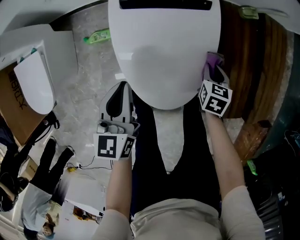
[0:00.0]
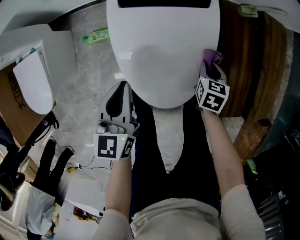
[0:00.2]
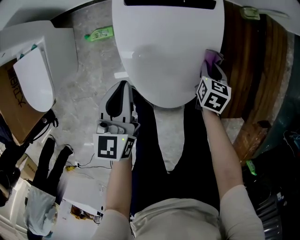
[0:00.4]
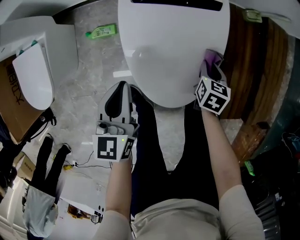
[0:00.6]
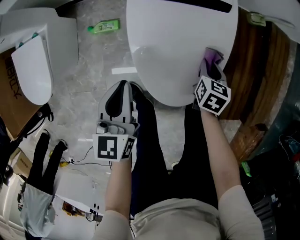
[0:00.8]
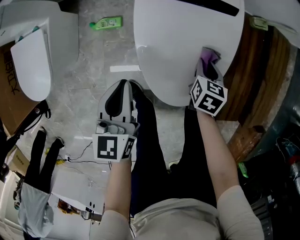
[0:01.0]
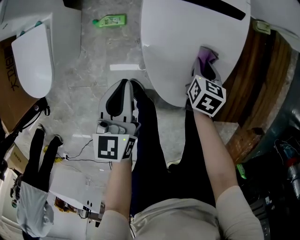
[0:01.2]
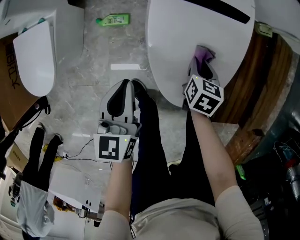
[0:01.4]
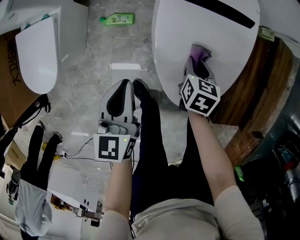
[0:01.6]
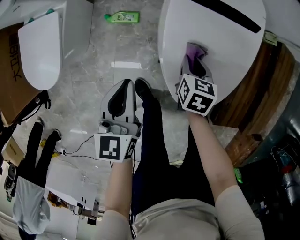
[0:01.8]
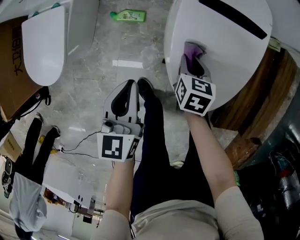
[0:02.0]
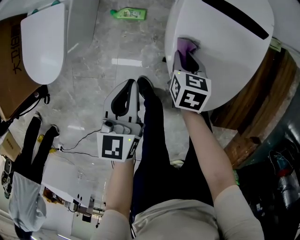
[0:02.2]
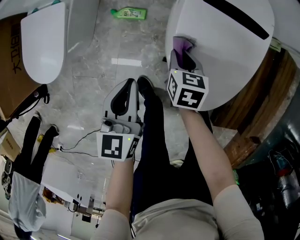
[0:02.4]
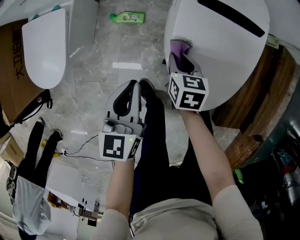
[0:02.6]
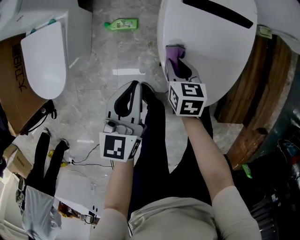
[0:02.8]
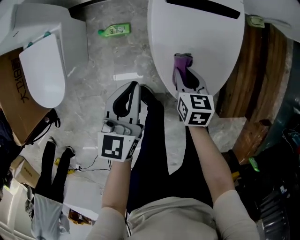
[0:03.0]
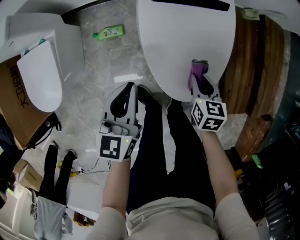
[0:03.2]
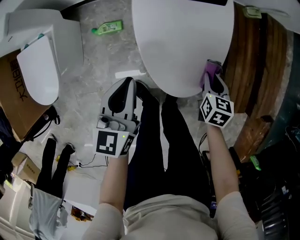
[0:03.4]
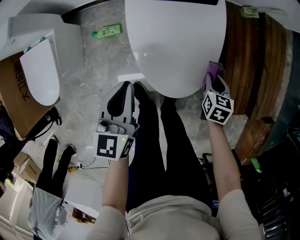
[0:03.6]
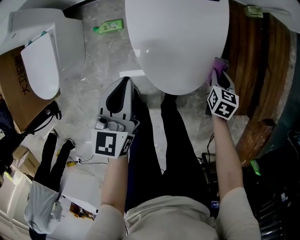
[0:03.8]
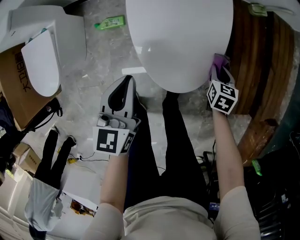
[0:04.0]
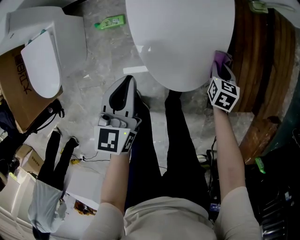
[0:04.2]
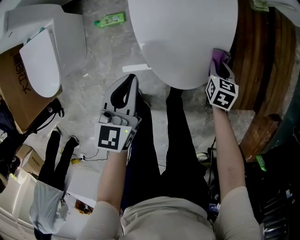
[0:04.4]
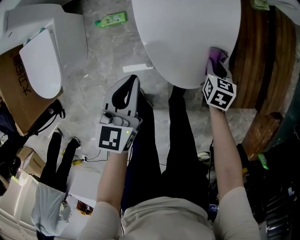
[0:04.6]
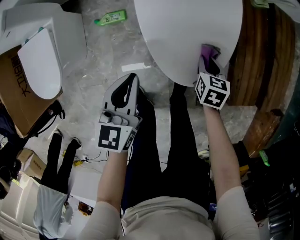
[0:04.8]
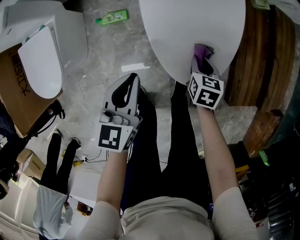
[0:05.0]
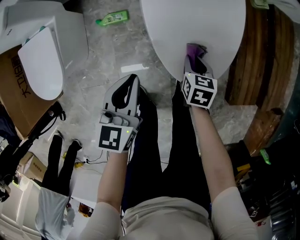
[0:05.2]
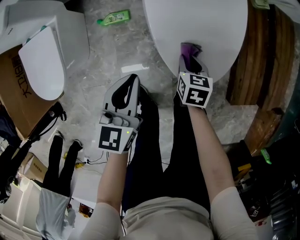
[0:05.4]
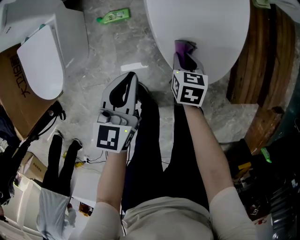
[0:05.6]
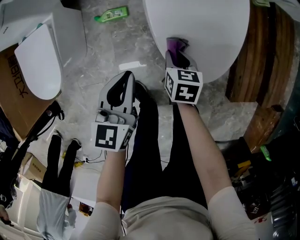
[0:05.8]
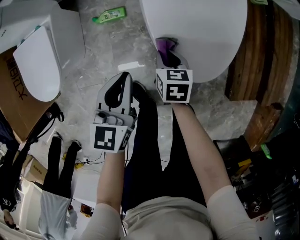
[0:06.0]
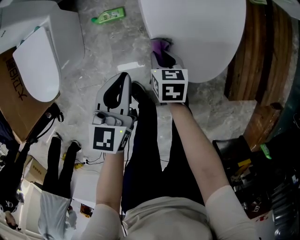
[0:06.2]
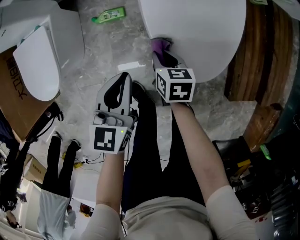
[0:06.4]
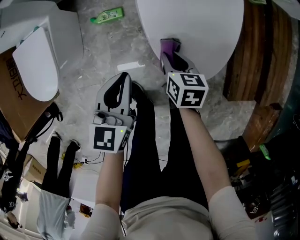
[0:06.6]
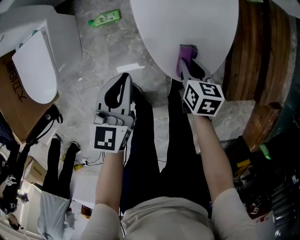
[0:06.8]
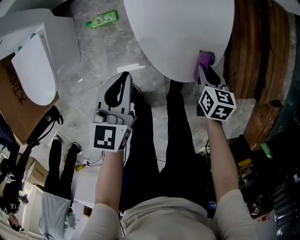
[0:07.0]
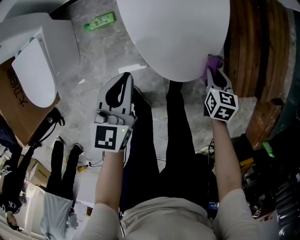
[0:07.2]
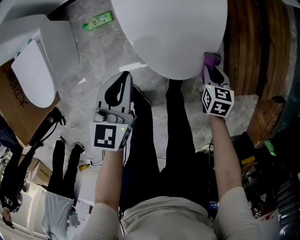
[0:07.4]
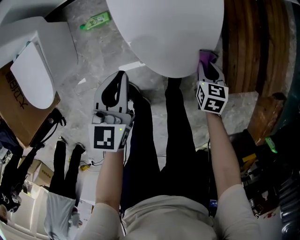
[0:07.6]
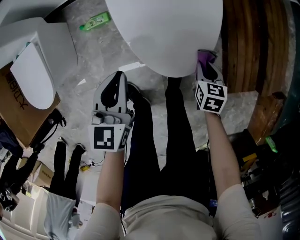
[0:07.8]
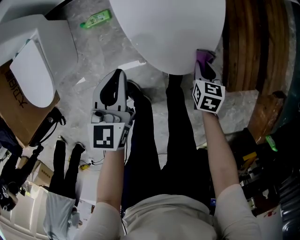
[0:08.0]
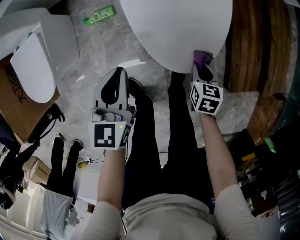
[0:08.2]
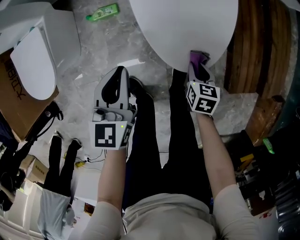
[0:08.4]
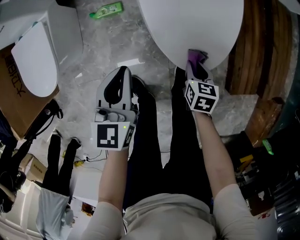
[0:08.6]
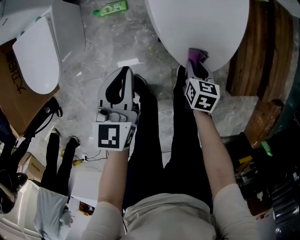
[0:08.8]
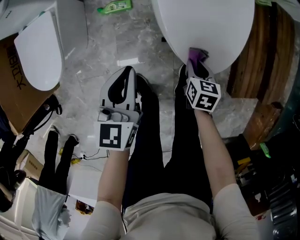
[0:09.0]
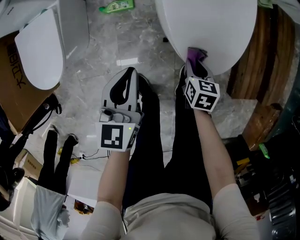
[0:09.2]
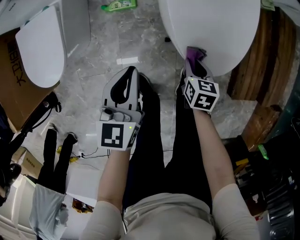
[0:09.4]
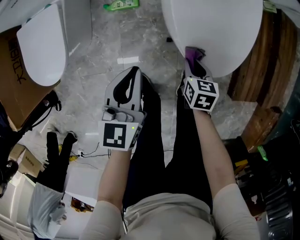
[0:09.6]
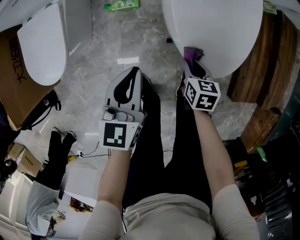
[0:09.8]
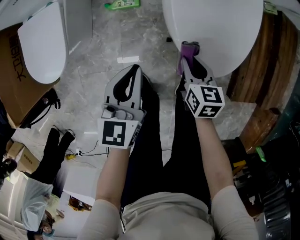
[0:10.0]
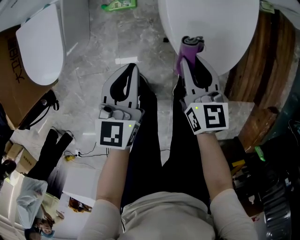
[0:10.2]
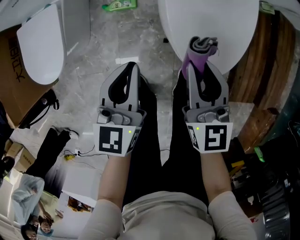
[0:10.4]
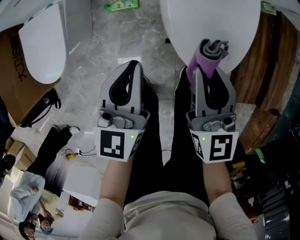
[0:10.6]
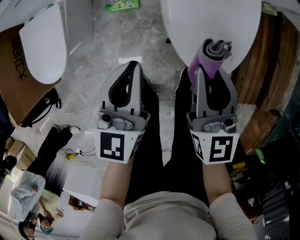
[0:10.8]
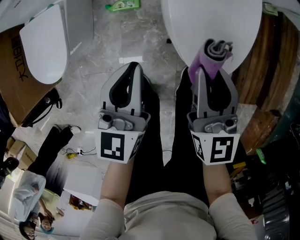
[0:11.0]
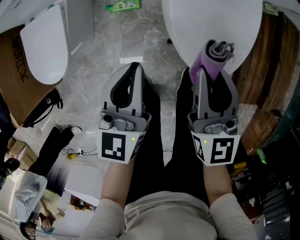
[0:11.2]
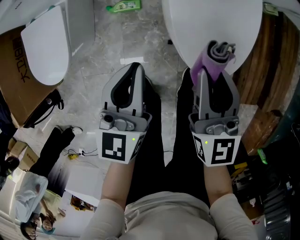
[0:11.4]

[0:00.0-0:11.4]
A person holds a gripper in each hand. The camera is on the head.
0:00.0 to 0:01.4: The right gripper moves to the left, about 15 cm. The left gripper heads to the left, covering approximately 10 cm.
0:01.4 to 0:02.8: The right gripper goes about 15 cm to the left.
0:02.8 to 0:04.2: The left gripper goes approximately 10 cm to the right. The right gripper shifts some 30 cm to the right, and changes its angle by some 20 degrees.
0:04.2 to 0:05.6: The right gripper goes some 25 cm to the left. Meanwhile the left gripper goes some 5 cm to the left.
0:05.6 to 0:07.2: The right gripper heads to the right, covering roughly 20 cm; the left gripper is displaced to the right by some 5 cm.
0:07.2 to 0:08.6: The right gripper heads to the left, covering some 10 cm, while the left gripper travels to the left by approximately 5 cm.
0:08.6 to 0:10.0: The right gripper travels to the left and upward by some 10 cm.
0:10.0 to 0:11.4: The right gripper travels upward by approximately 20 cm, and turns by roughly 30 degrees, while the left gripper goes roughly 5 cm upward.

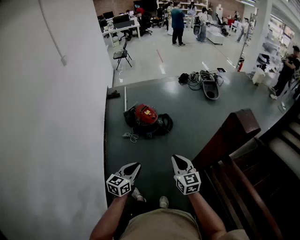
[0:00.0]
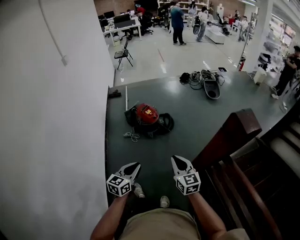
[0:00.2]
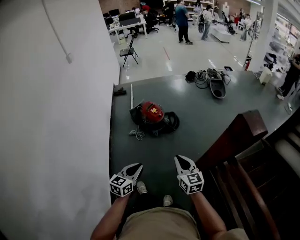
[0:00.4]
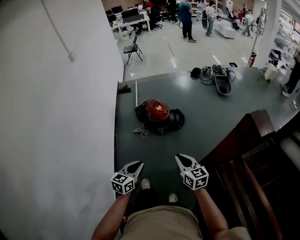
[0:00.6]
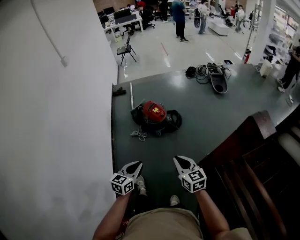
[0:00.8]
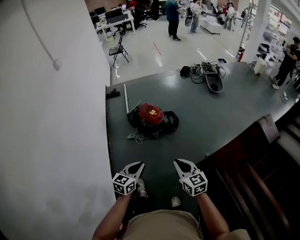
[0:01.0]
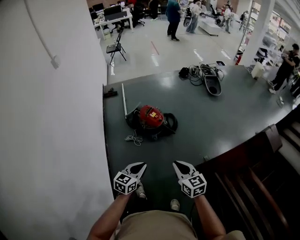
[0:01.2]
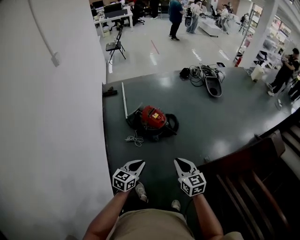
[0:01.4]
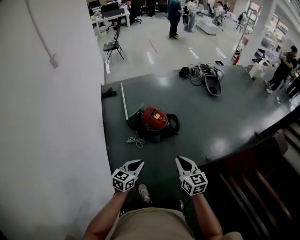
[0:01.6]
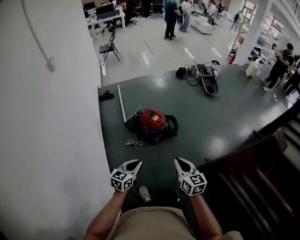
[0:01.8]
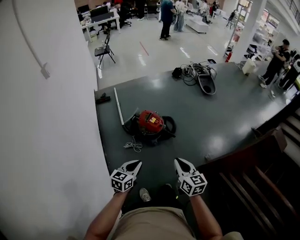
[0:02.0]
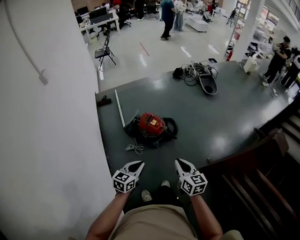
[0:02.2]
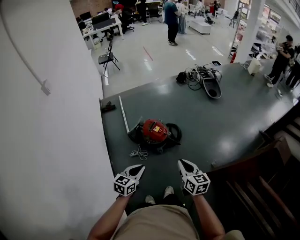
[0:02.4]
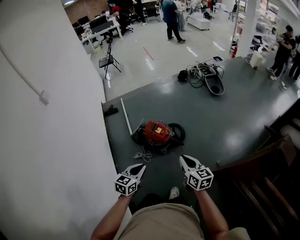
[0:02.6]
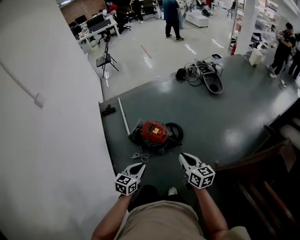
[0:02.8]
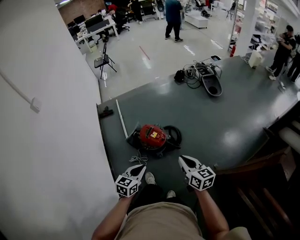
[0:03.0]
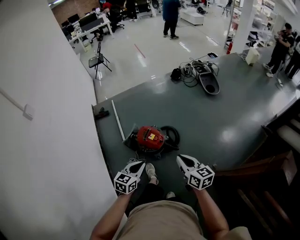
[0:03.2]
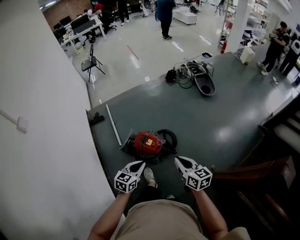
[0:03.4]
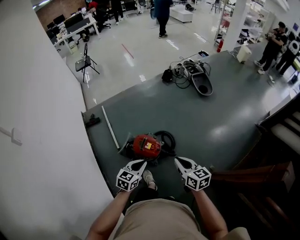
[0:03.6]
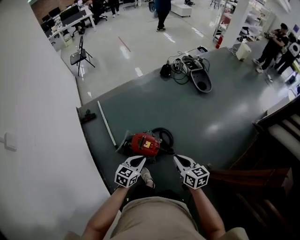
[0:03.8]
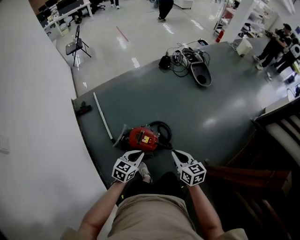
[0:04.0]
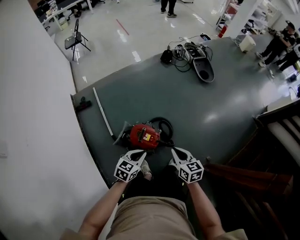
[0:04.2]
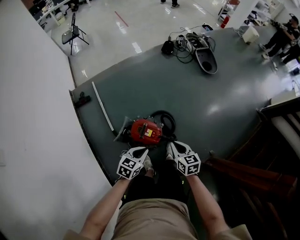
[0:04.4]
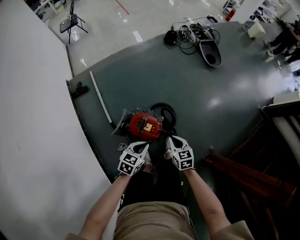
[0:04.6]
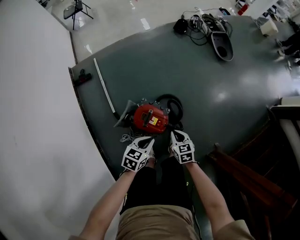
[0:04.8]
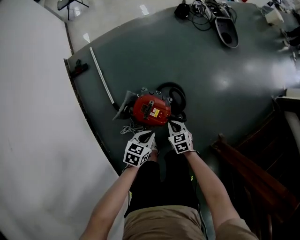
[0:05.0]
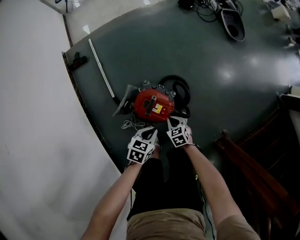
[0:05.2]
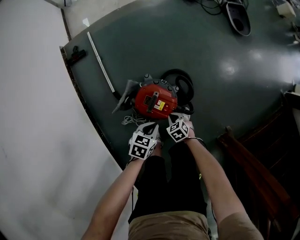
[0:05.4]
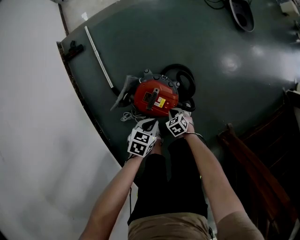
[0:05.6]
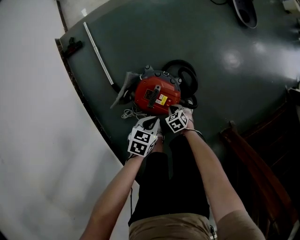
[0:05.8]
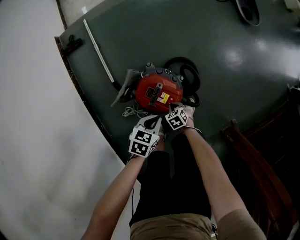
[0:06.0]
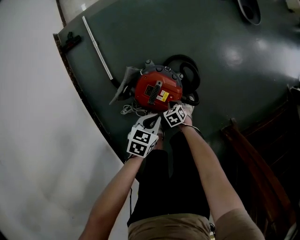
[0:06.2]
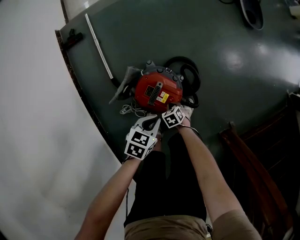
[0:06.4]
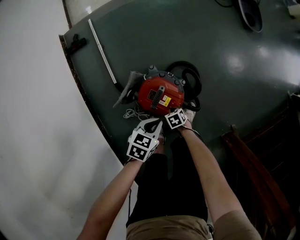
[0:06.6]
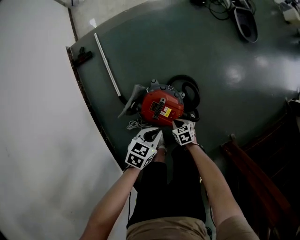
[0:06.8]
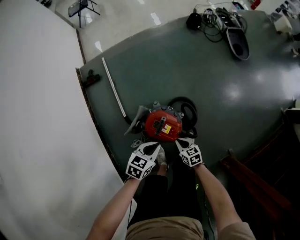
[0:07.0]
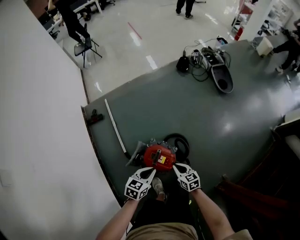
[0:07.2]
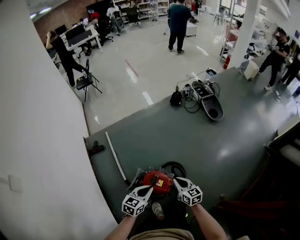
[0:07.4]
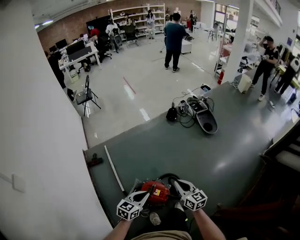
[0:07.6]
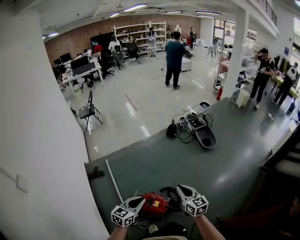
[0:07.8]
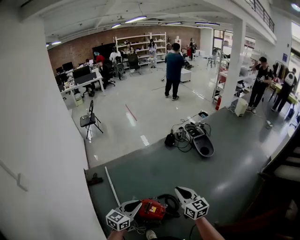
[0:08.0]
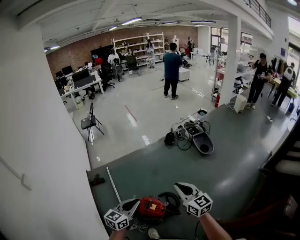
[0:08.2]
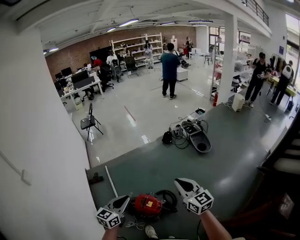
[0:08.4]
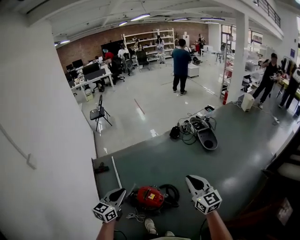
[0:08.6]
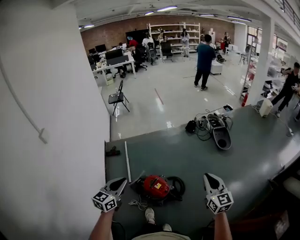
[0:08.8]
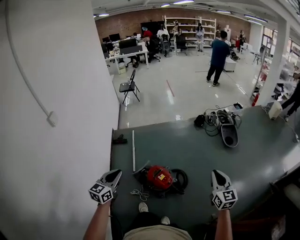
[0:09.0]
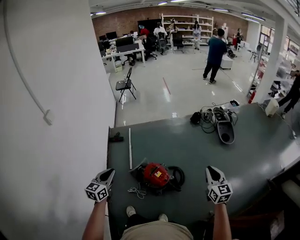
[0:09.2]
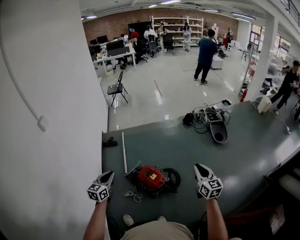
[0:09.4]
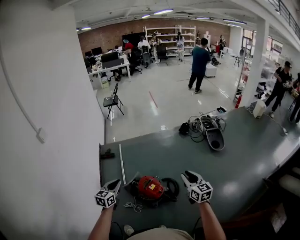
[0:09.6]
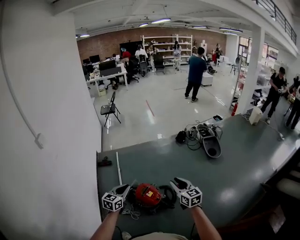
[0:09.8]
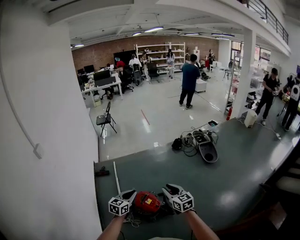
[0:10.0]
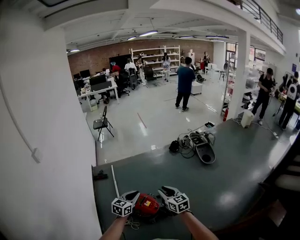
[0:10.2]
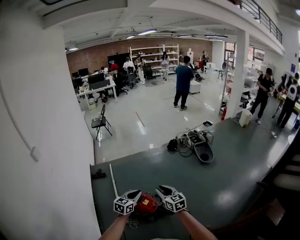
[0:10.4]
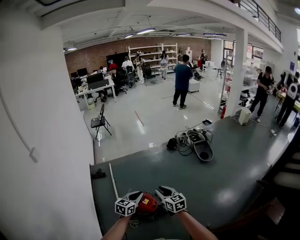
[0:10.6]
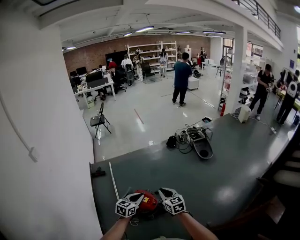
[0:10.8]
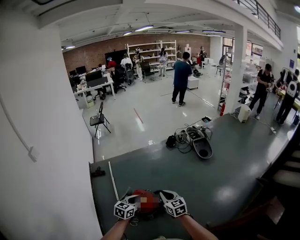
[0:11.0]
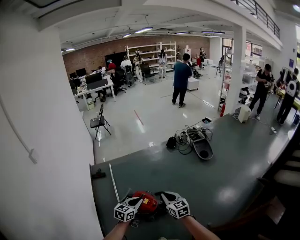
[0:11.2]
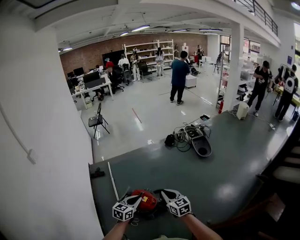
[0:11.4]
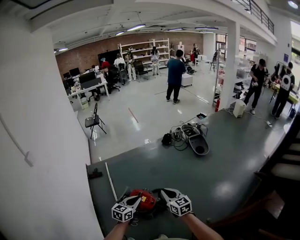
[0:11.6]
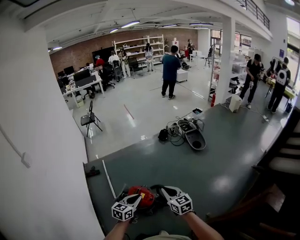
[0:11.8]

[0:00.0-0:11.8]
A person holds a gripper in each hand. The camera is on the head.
0:00.0 to 0:01.4: The right gripper travels to the left and forward by some 25 cm. The left gripper heads forward and to the left, covering roughly 30 cm.
0:01.4 to 0:03.0: The grippers both shift forward by roughly 25 cm.
0:03.0 to 0:04.4: The right gripper travels forward, downward and to the left by roughly 35 cm, and rotates roughly 20 degrees. The left gripper goes roughly 35 cm forward and downward, and rotates some 20 degrees.
0:04.4 to 0:06.0: The left gripper goes about 30 cm downward, and turns by about 20 degrees. The right gripper shifts approximately 50 cm downward, and angles its fingers downward, by about 40 degrees.
0:06.0 to 0:07.4: Both grippers travel together upward, approximately 40 cm. The right gripper angles its fingers upward, by approximately 50 degrees. The left gripper rotates approximately 30 degrees.
0:07.4 to 0:08.8: The left gripper is displaced upward and backward by about 30 cm, and swivels approximately 30 degrees, while the right gripper shifts roughly 40 cm upward, to the right and backward, and rotates about 30 degrees.
0:08.8 to 0:10.4: The right gripper travels to the left and downward by some 15 cm, and opens. The left gripper travels to the right and downward by roughly 15 cm.
0:10.4 to 0:11.8: The right gripper moves to the right, about 5 cm, and closes up. The left gripper changes place by some 5 cm.
